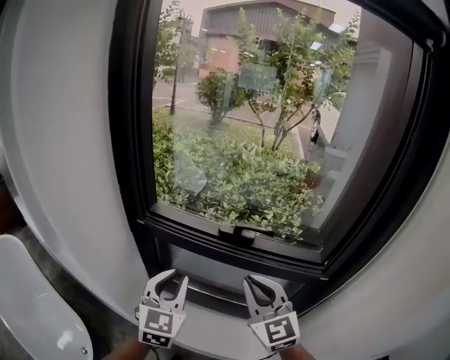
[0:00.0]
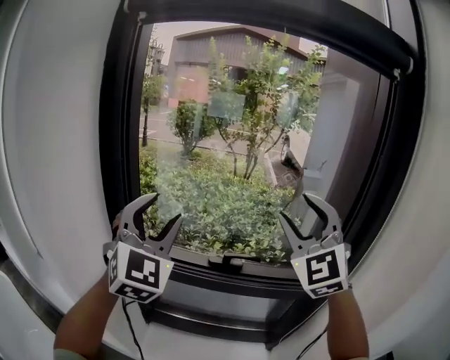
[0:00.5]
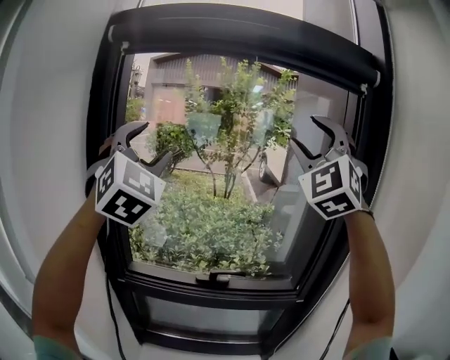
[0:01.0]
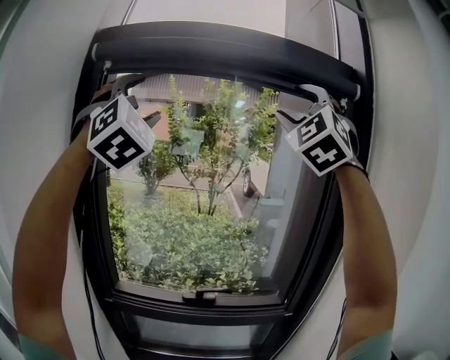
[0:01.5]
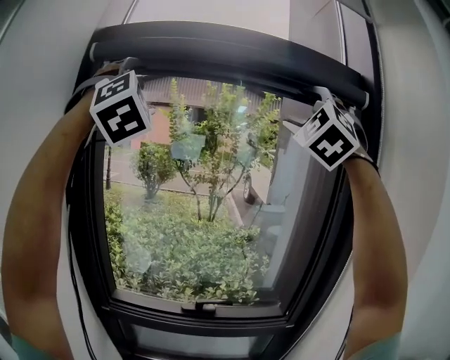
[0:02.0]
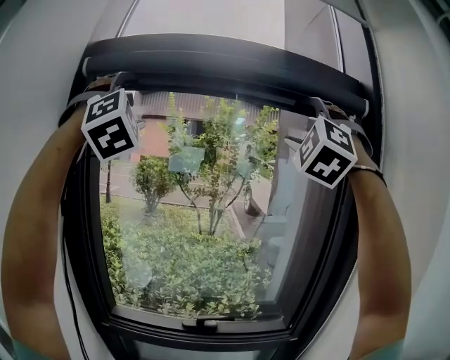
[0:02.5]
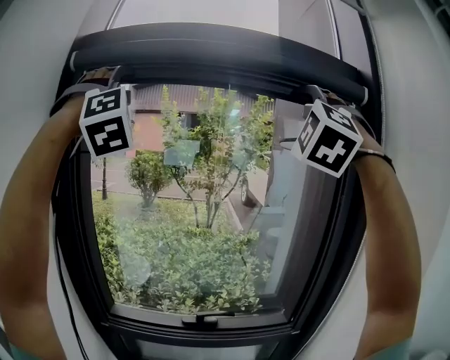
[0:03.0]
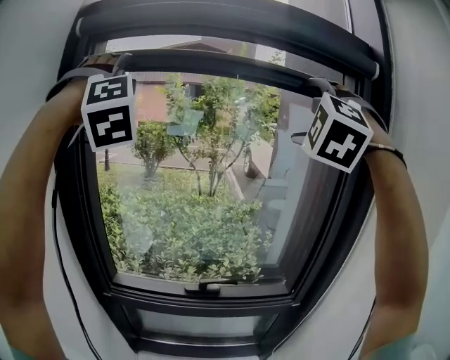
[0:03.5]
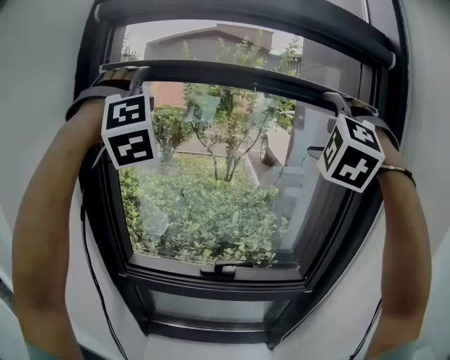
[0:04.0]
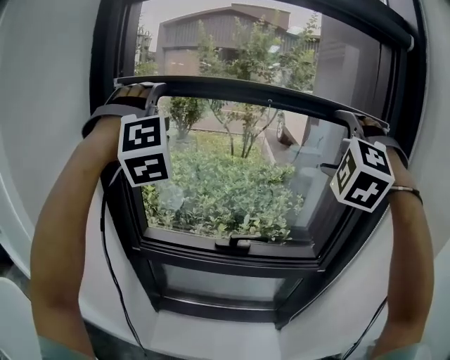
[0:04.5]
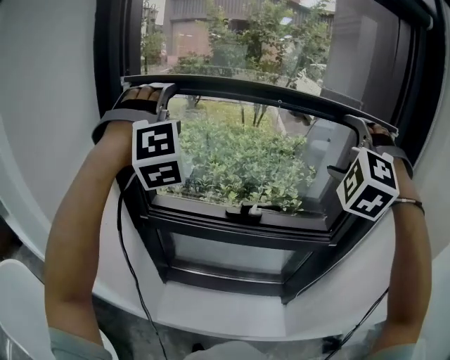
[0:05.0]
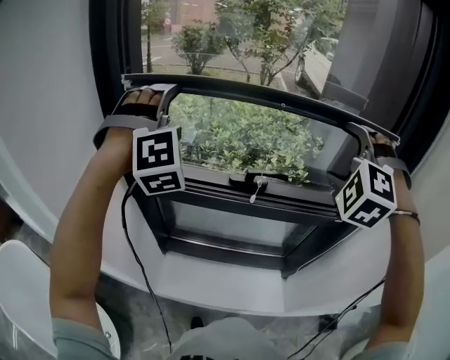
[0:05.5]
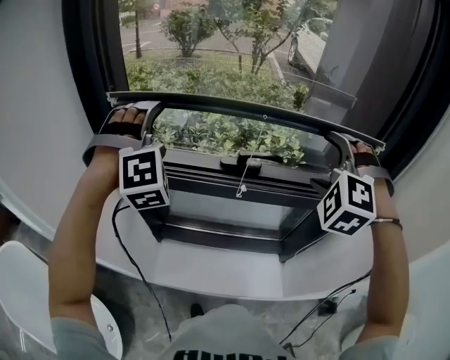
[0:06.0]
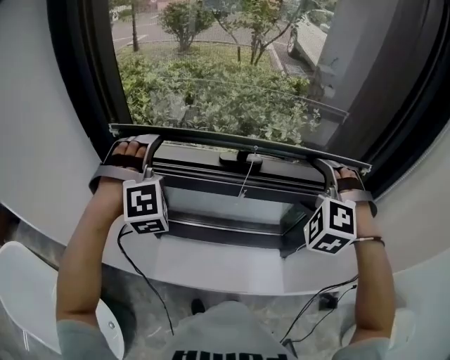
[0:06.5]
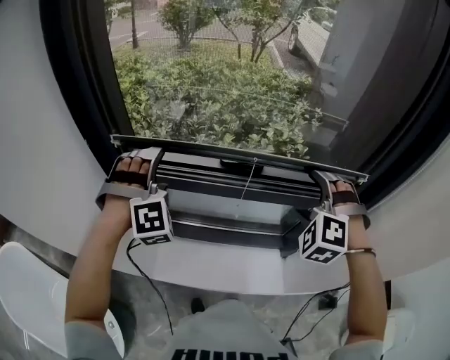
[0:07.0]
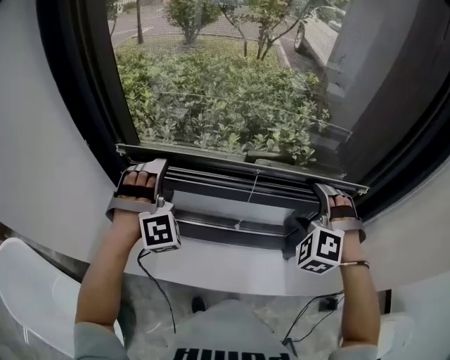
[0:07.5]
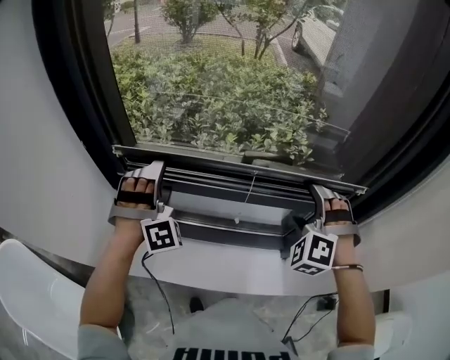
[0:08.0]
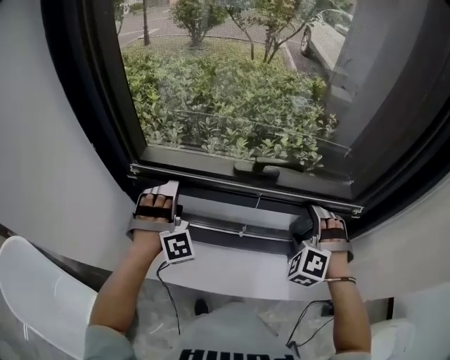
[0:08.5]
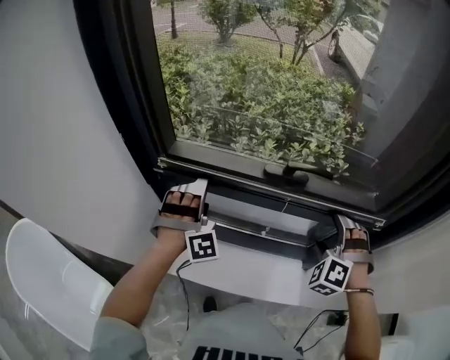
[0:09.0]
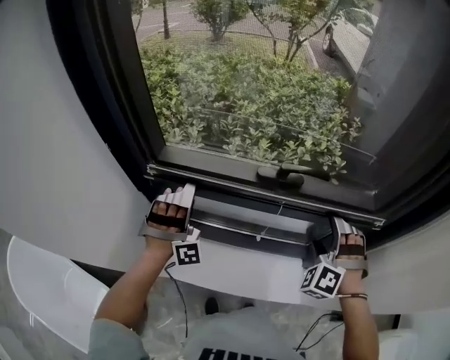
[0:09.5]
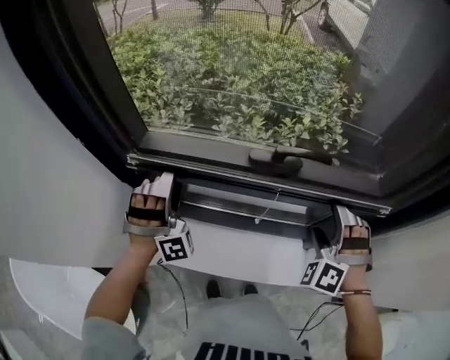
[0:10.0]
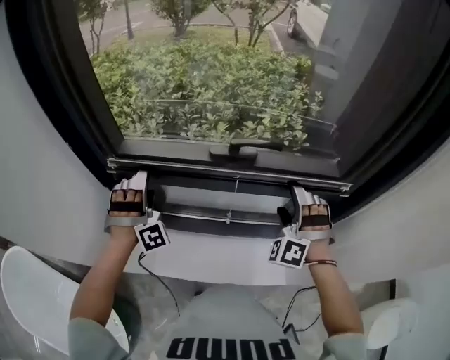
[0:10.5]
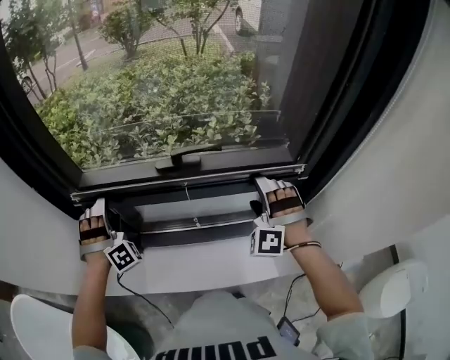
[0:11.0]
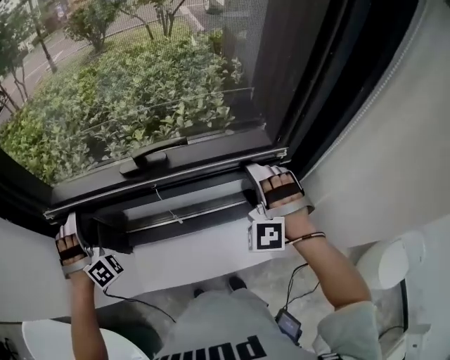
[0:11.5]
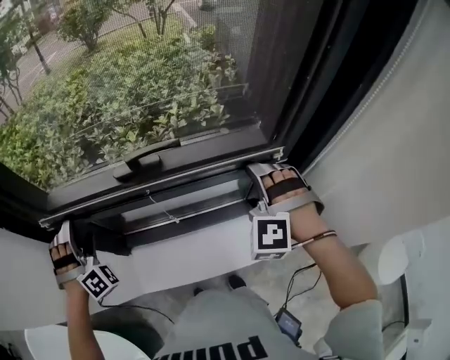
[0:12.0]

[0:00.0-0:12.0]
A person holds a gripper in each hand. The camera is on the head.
0:00.0 to 0:02.0: The two grippers go approximately 60 cm upward. The right gripper rolls counterclockwise, seen from behind, by roughly 60 degrees, and opens. Meanwhile the left gripper rolls clockwise, seen from behind, by approximately 60 degrees, and opens its fingers.
0:02.0 to 0:04.0: The grippers both shift downward by roughly 15 cm. The left gripper turns by roughly 20 degrees; the right gripper changes its angle by about 30 degrees.
0:04.0 to 0:06.0: The two grippers go roughly 35 cm downward. The right gripper turns by about 20 degrees, while the left gripper rotates some 20 degrees.
0:06.0 to 0:08.0: The grippers both shift downward by approximately 15 cm.
0:08.0 to 0:10.0: Both grippers move downward, about 5 cm.
0:10.0 to 0:12.0: The right gripper heads to the right, covering approximately 10 cm.

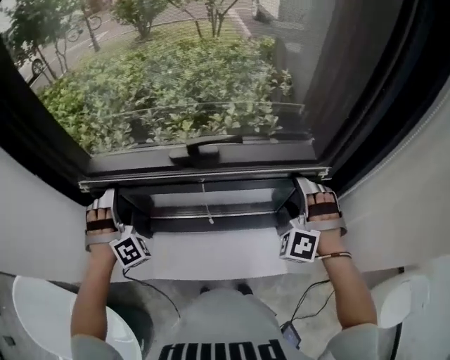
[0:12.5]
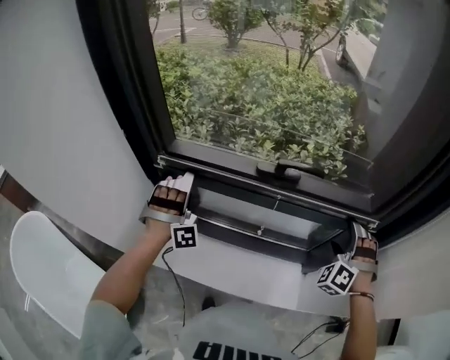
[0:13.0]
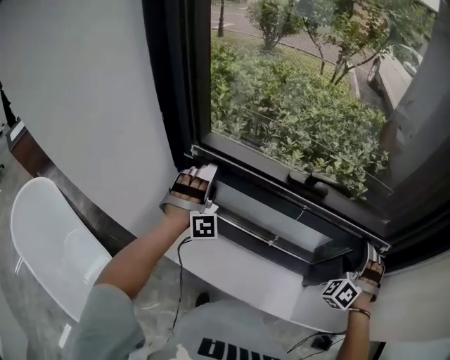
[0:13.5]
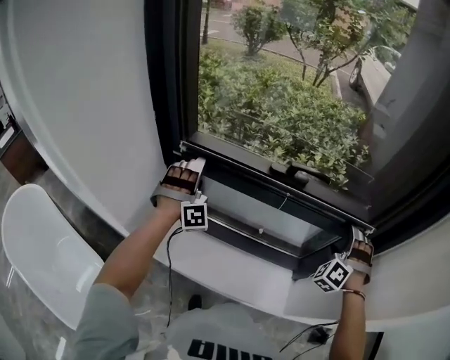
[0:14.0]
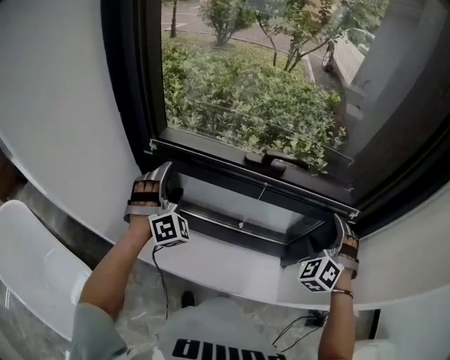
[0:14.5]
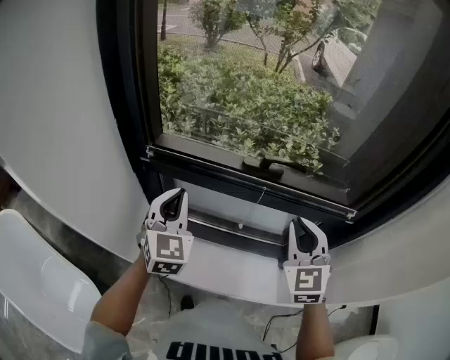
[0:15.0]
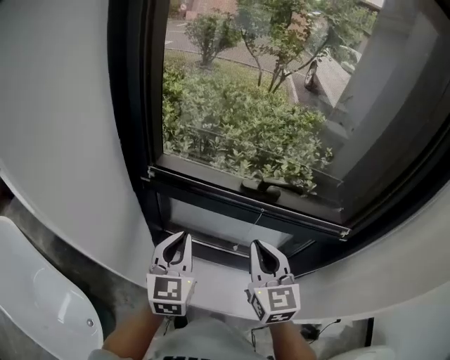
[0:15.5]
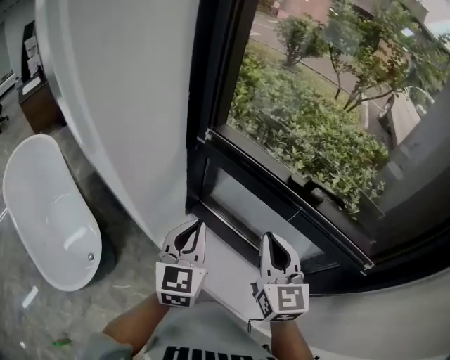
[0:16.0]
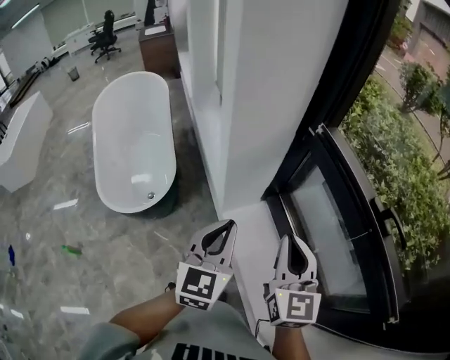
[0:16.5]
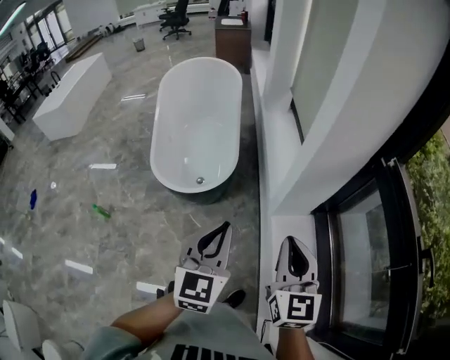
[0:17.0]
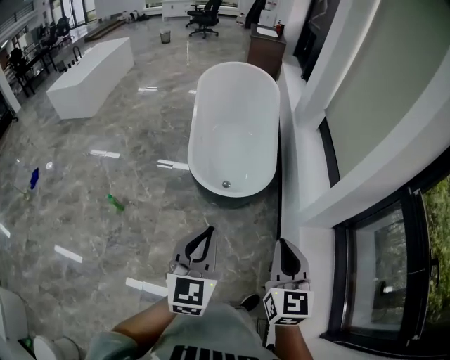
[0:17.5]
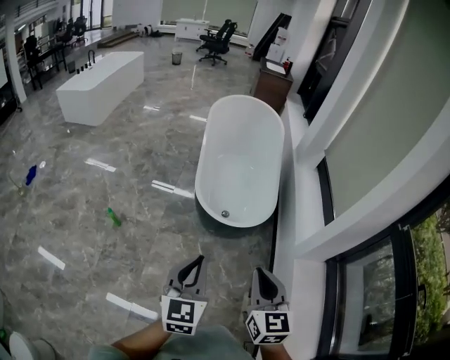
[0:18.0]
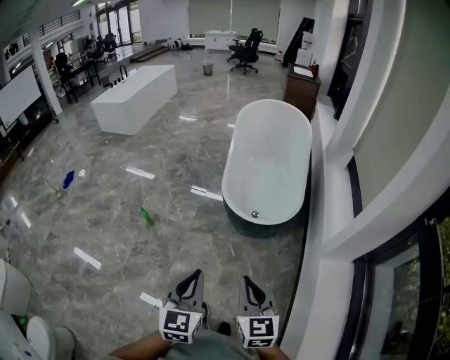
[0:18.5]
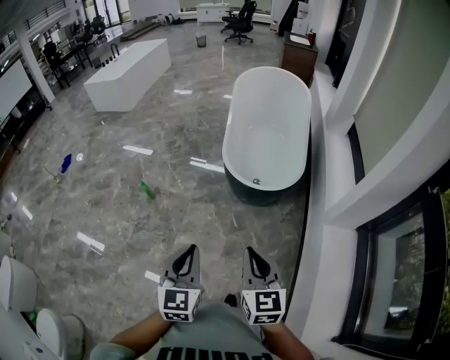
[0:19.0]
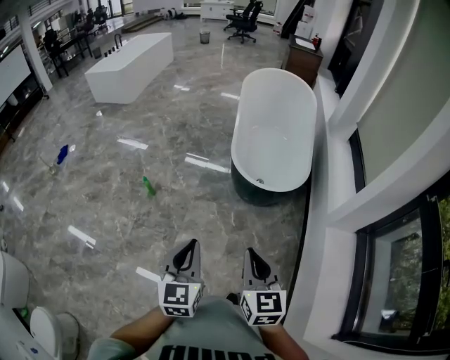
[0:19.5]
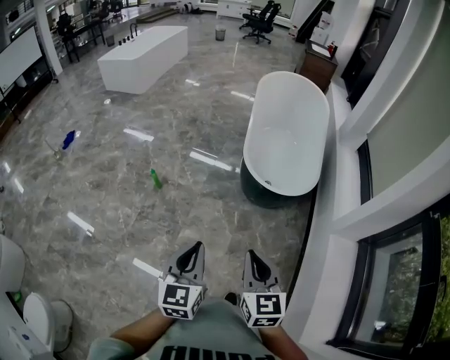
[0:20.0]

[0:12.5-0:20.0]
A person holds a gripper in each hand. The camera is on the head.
0:12.5 to 0:14.5: The left gripper ends up approximately 5 cm from where it was, and turns by about 20 degrees. The right gripper shifts by approximately 5 cm.
0:14.5 to 0:16.5: The right gripper moves approximately 35 cm, turns by some 90 degrees, and closes its fingers; the left gripper shifts by roughly 30 cm, twists some 80 degrees counterclockwise, seen from behind, and closes its fingers.
0:16.5 to 0:18.0: Both grippers are carried approximately 60 cm. The right gripper turns by some 30 degrees, while the left gripper turns by roughly 40 degrees.
0:18.0 to 0:20.0: The grippers both shift to the left and backward by approximately 20 cm.

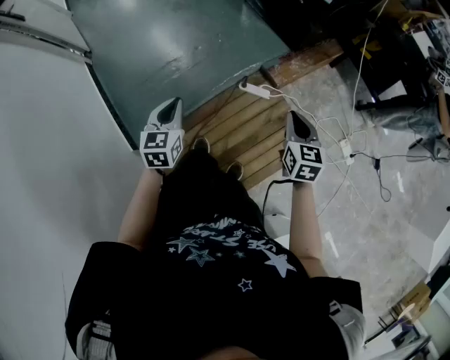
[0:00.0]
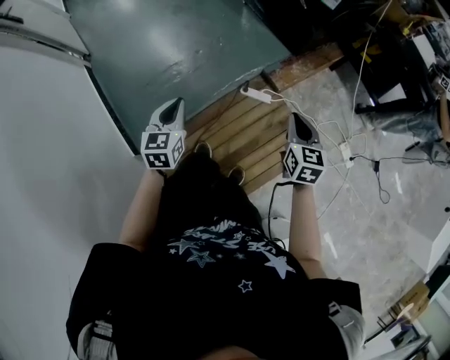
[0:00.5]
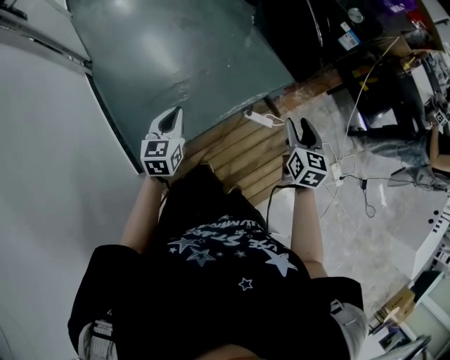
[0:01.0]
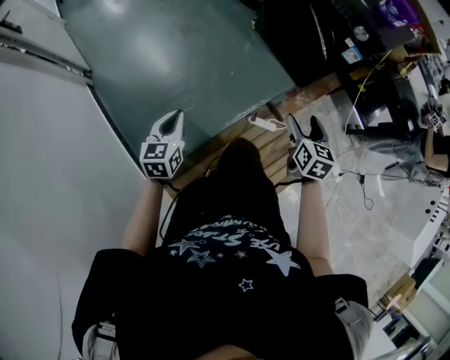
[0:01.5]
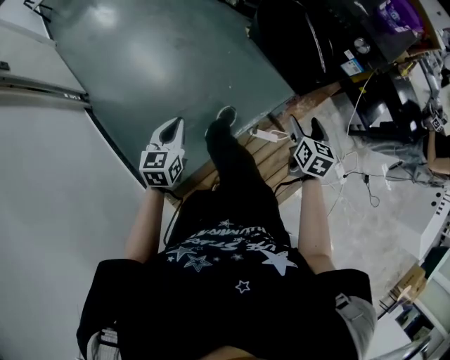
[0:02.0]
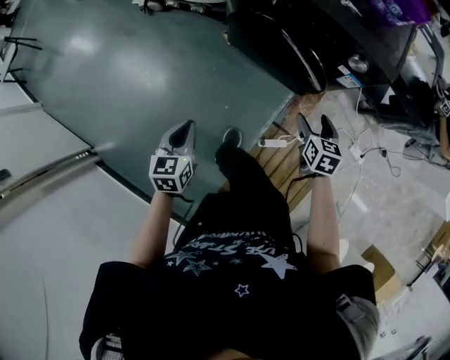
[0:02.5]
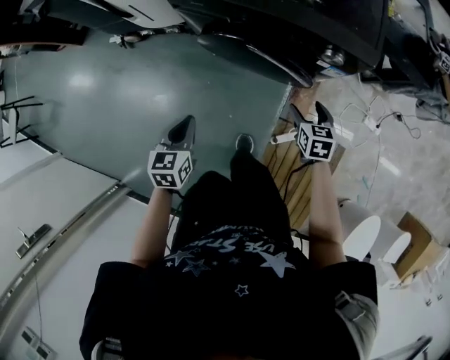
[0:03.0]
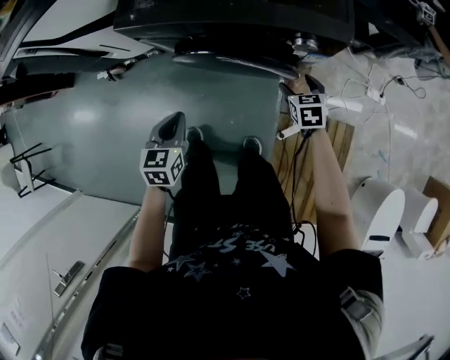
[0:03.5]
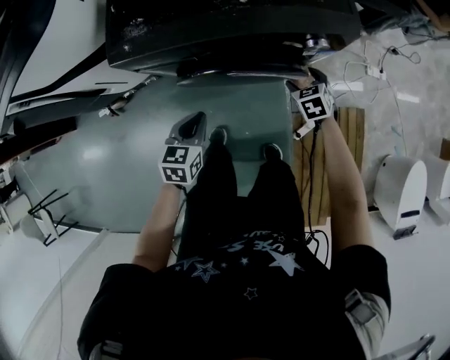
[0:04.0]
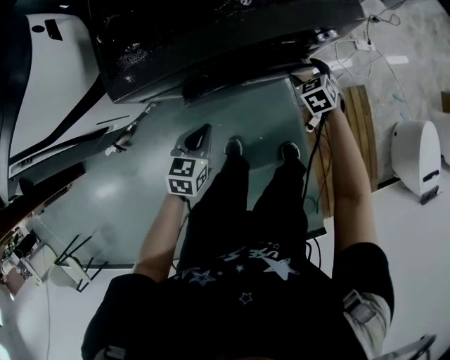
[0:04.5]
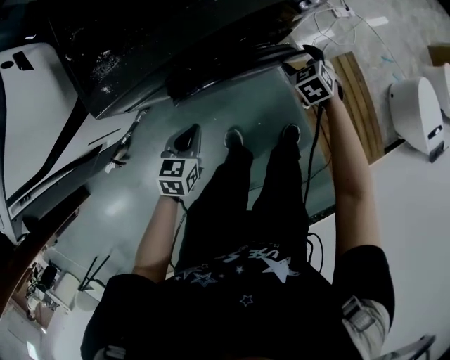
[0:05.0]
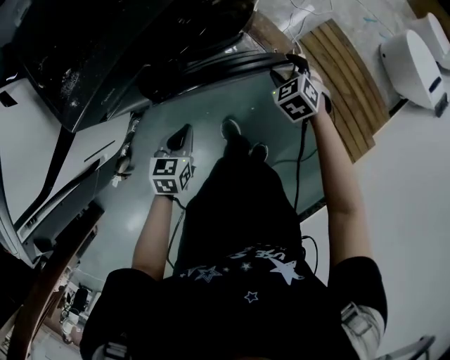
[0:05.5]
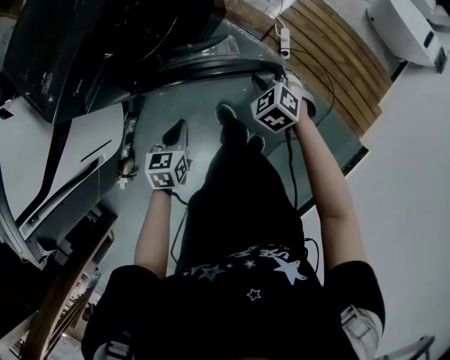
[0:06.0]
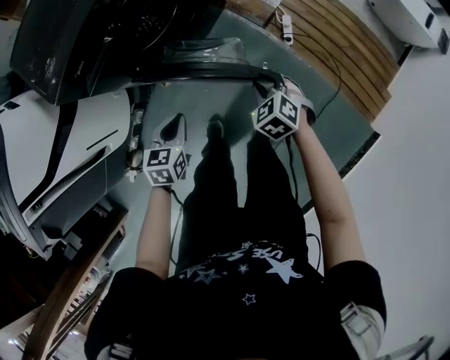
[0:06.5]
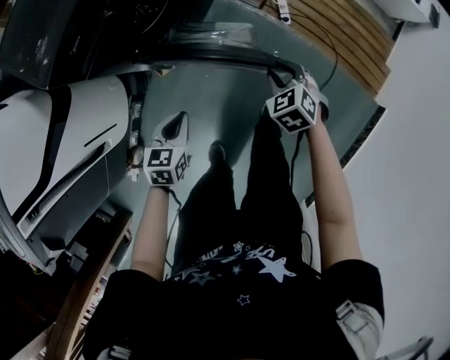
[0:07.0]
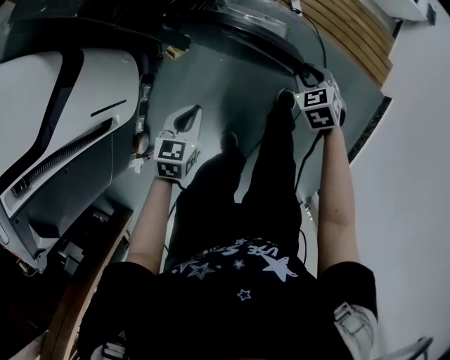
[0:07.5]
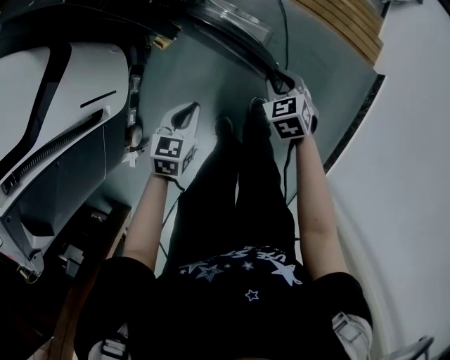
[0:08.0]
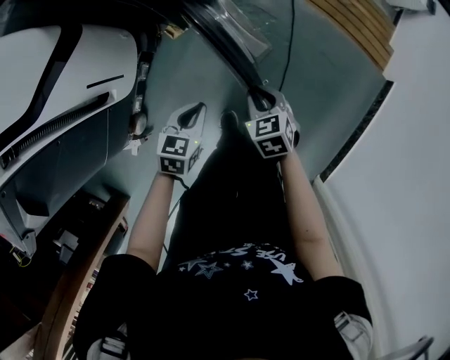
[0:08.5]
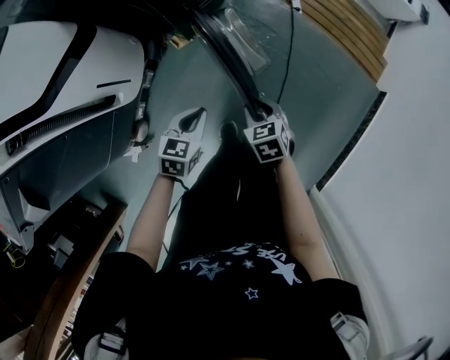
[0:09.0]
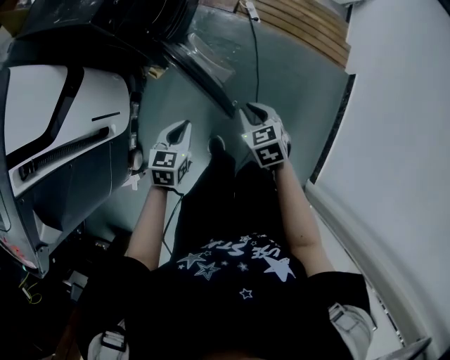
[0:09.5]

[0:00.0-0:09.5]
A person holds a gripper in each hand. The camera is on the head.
0:00.0 to 0:02.0: Both grippers travel together forward and to the left, roughly 30 cm. The right gripper opens up.
0:02.0 to 0:04.0: The right gripper ends up approximately 35 cm from where it was, and changes its angle by roughly 30 degrees; the left gripper ends up approximately 60 cm from where it was, and turns by roughly 60 degrees.
0:04.0 to 0:05.5: The right gripper shifts by some 15 cm, and swivels some 20 degrees. Meanwhile the left gripper moves downward, about 10 cm, and rotates roughly 30 degrees.
0:05.5 to 0:07.5: The left gripper moves roughly 25 cm, and rotates some 30 degrees; the right gripper ends up about 40 cm from where it was, turns by about 30 degrees, and closes up.
0:07.5 to 0:09.5: The left gripper heads backward and upward, covering some 10 cm; the right gripper is displaced backward, upward and to the left by about 25 cm.
